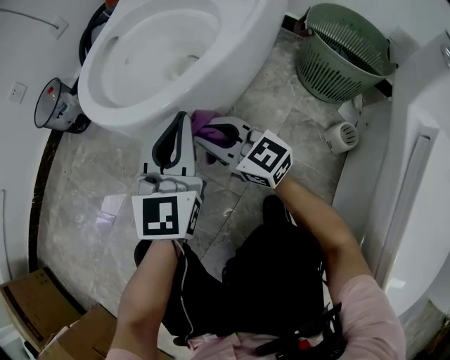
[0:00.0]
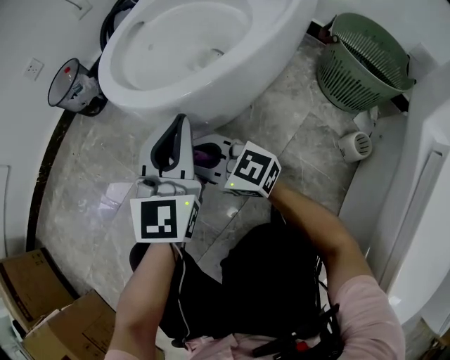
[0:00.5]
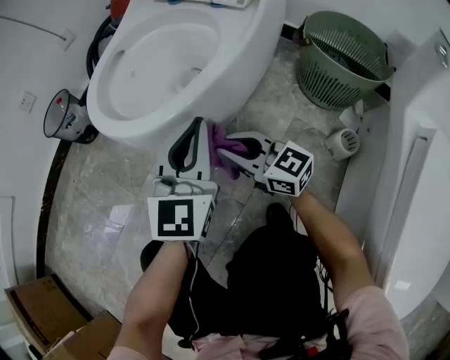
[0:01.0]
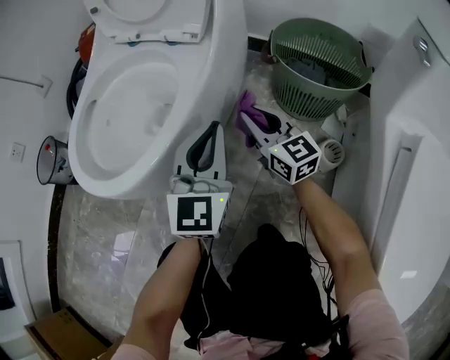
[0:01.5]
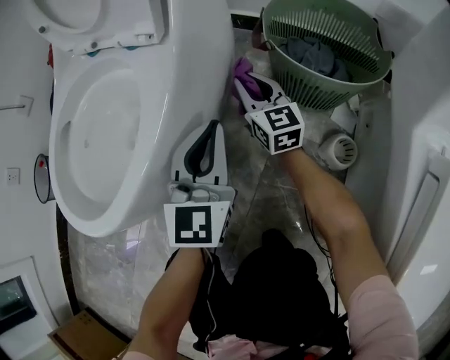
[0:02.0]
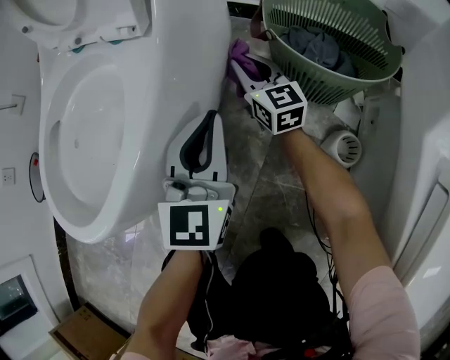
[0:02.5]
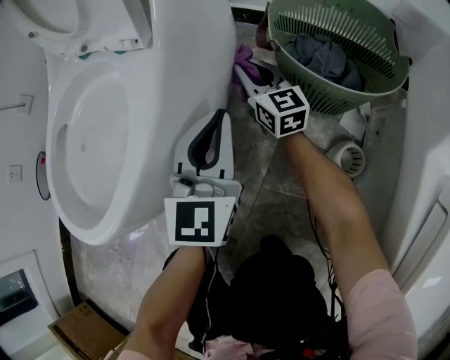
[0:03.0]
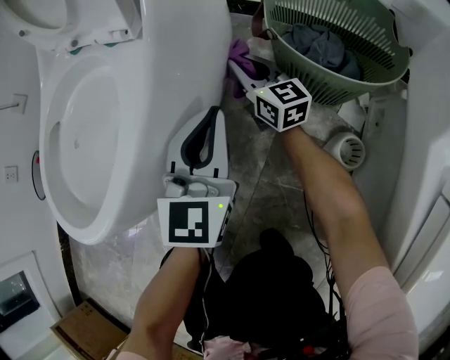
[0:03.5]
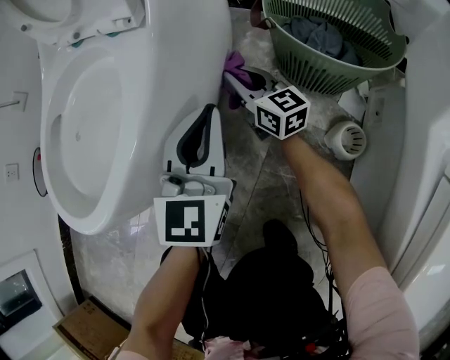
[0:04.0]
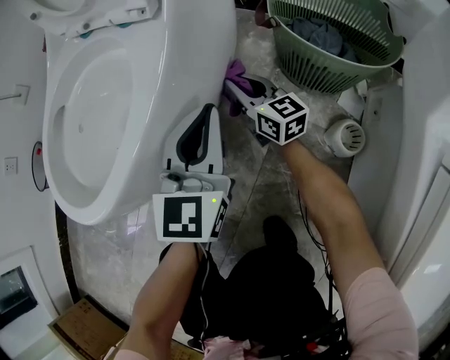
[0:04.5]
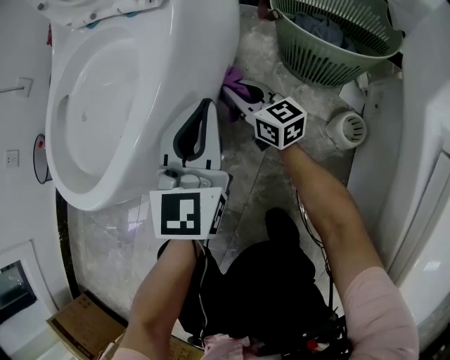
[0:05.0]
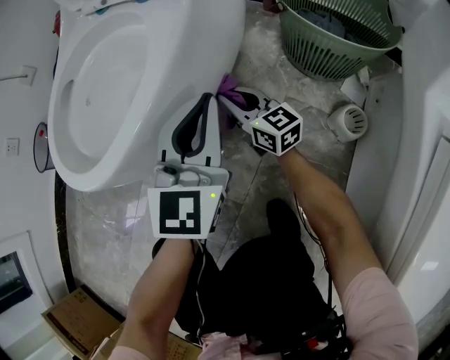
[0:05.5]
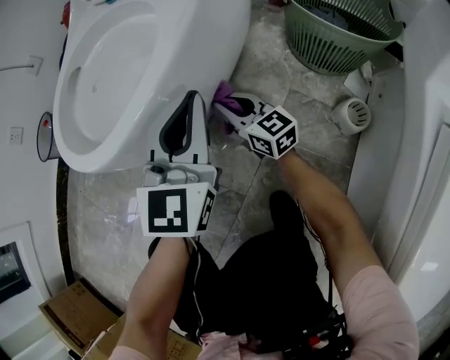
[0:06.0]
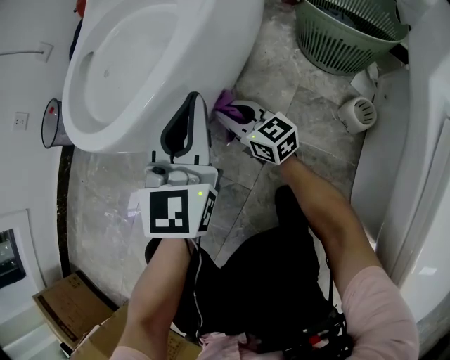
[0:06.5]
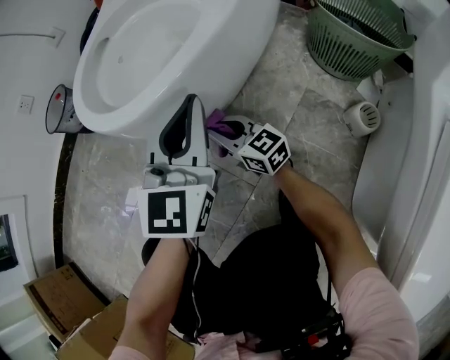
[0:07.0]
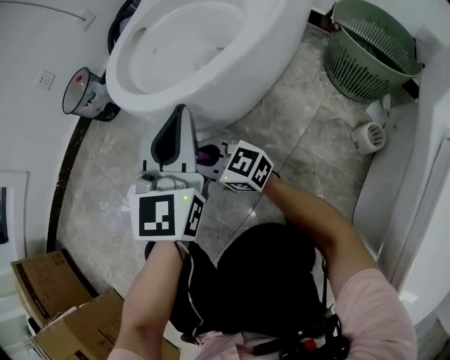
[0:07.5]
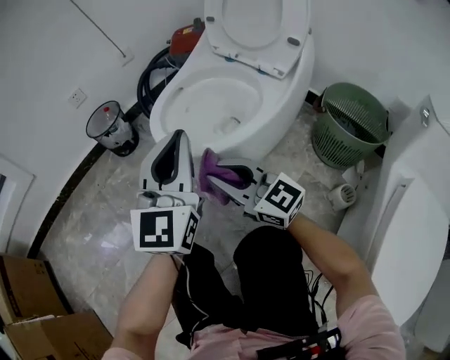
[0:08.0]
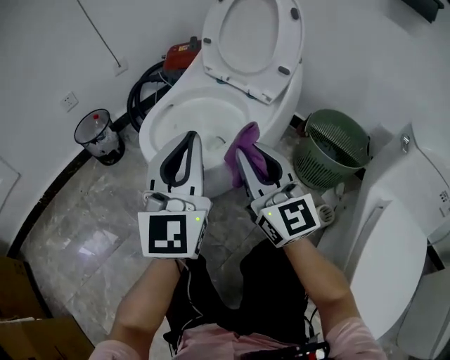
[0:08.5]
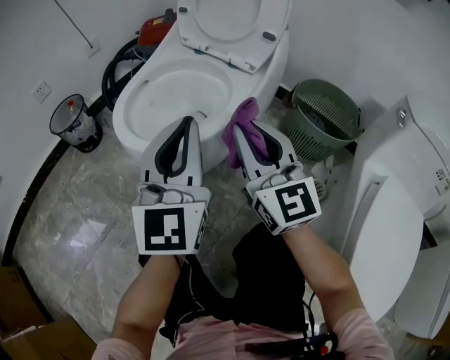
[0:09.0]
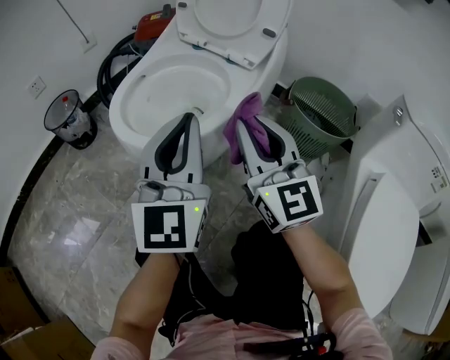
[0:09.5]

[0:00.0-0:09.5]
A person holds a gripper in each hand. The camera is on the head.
0.0 to 2.0 s: The left gripper changes place by about 20 cm; the right gripper shifts by about 35 cm, and changes its angle by about 50 degrees.
4.0 to 5.5 s: The left gripper moves backward, some 5 cm; the right gripper shifts approximately 15 cm backward and to the left.
5.5 to 7.5 s: The left gripper moves some 20 cm. The right gripper moves approximately 35 cm, and changes its angle by some 40 degrees.
7.5 to 9.5 s: The right gripper is displaced upward by roughly 30 cm, and changes its angle by approximately 60 degrees. Meanwhile the left gripper goes roughly 15 cm upward.

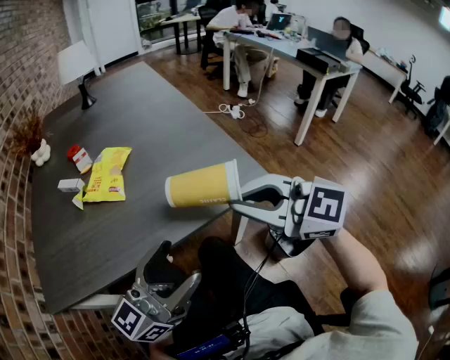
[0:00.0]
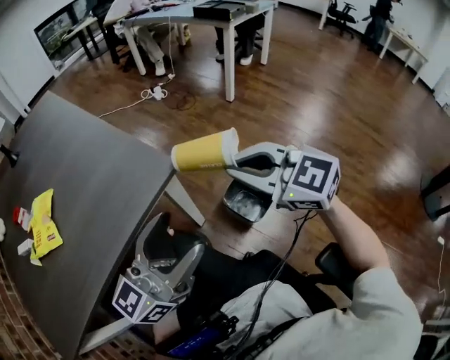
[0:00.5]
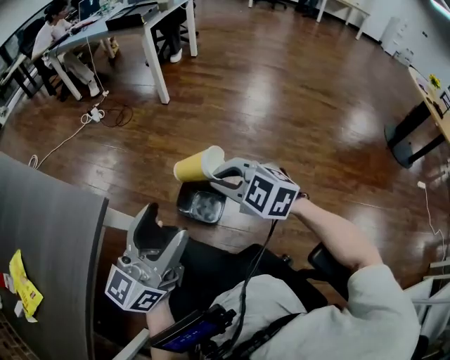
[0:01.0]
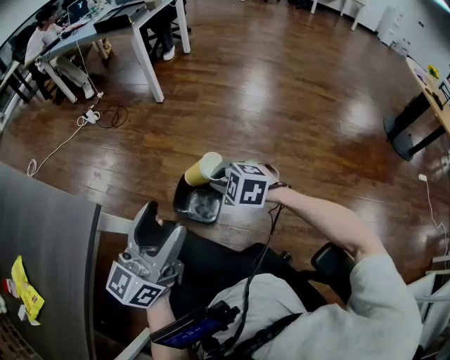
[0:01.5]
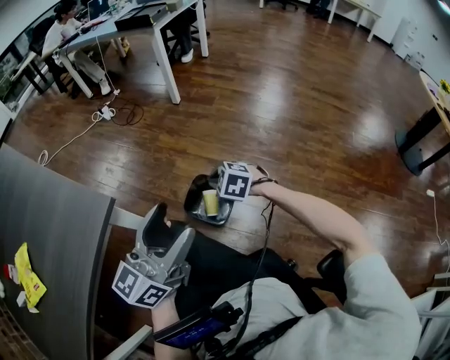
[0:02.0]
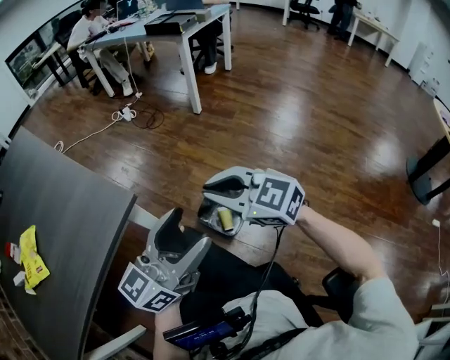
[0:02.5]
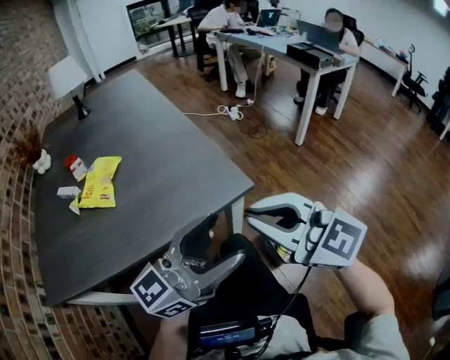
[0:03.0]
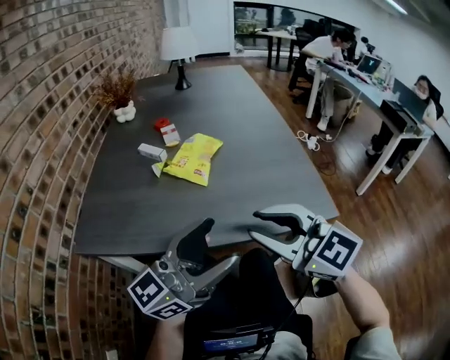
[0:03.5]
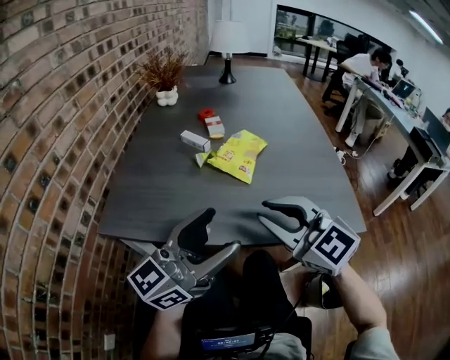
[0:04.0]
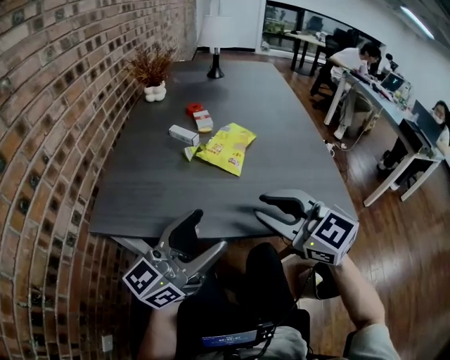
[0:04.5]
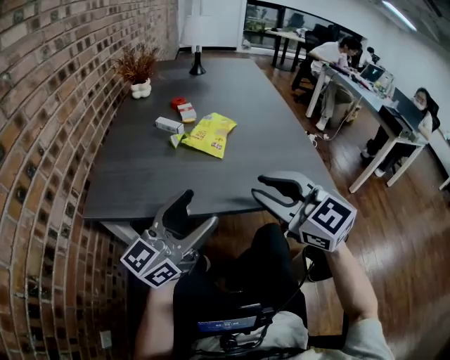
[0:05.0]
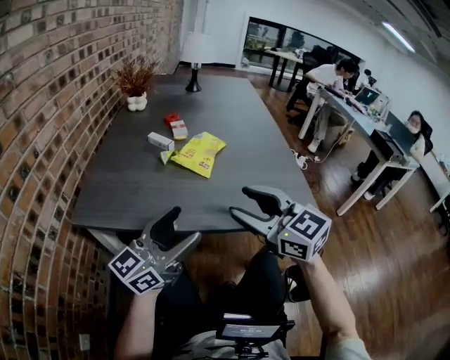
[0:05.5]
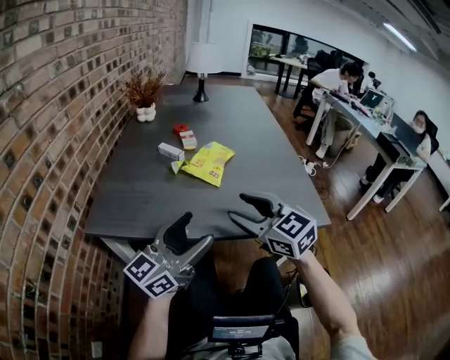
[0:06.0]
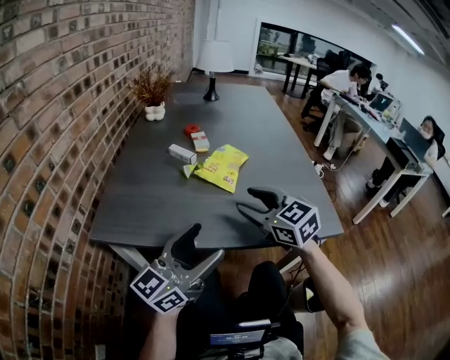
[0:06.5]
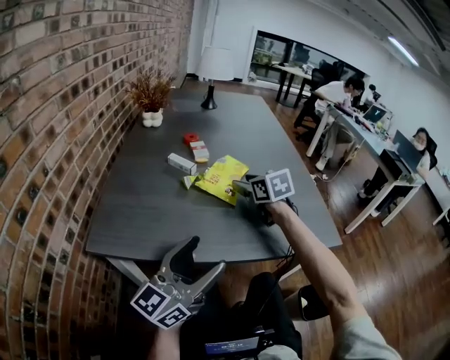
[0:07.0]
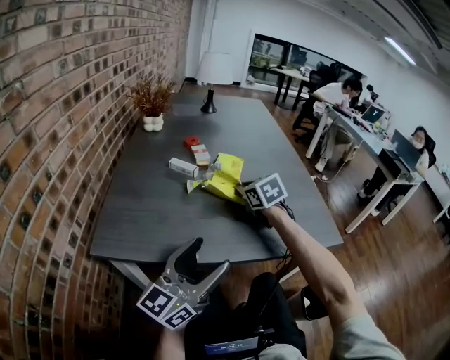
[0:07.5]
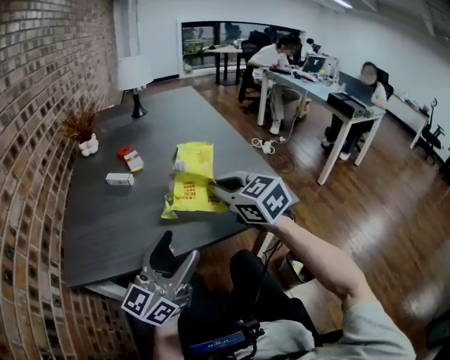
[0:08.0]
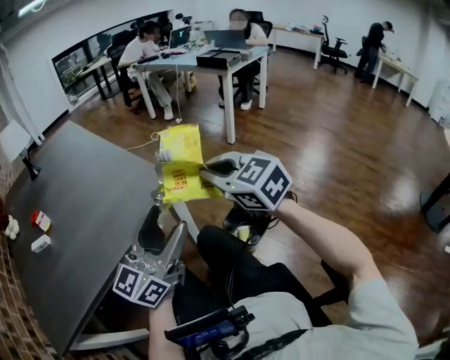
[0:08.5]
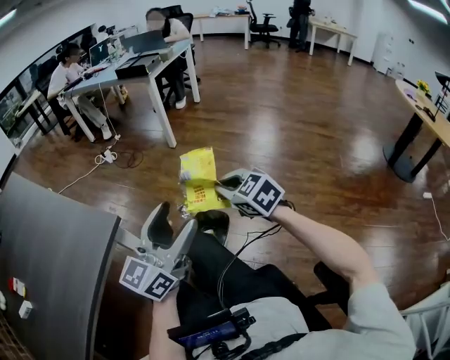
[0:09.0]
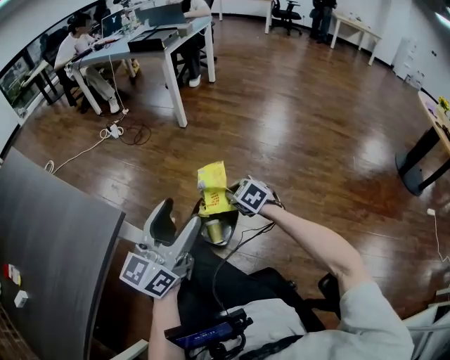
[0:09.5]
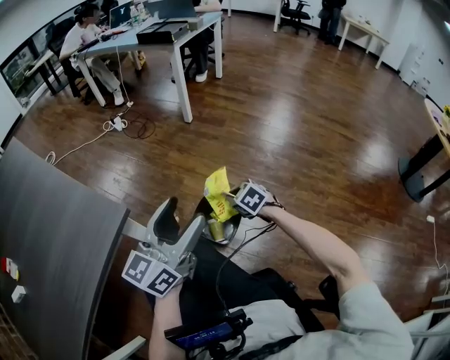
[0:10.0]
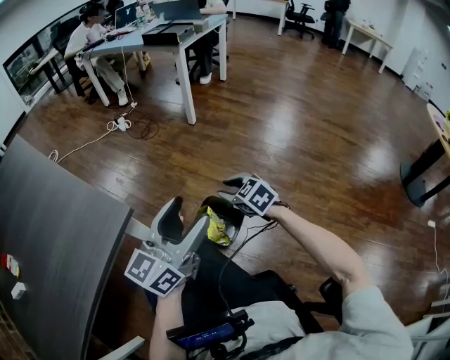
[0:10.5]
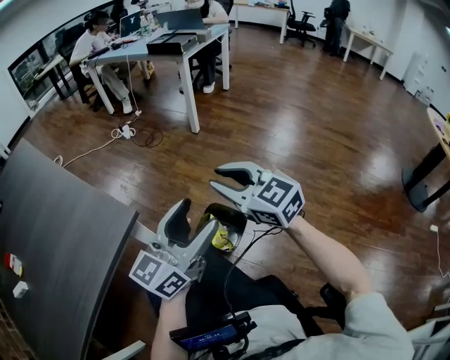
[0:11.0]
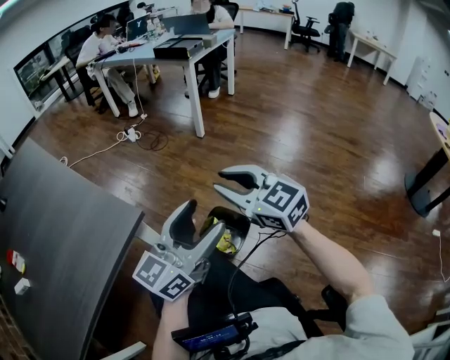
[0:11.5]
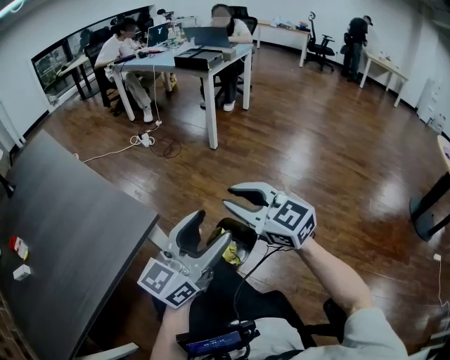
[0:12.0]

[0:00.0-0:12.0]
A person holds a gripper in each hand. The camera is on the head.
0.0 to 2.0 s: The left gripper shifts by approximately 30 cm, and rotates about 30 degrees. Meanwhile the right gripper ends up roughly 50 cm from where it was, and tilts its fingers about 50 degrees downward.
2.0 to 4.0 s: The pair of grippers is taken about 50 cm. The right gripper angles its fingers upward, by roughly 50 degrees. Meanwhile the left gripper turns by about 60 degrees.
4.0 to 6.0 s: The right gripper opens up.
6.0 to 8.0 s: The right gripper goes roughly 10 cm forward and to the right, and closes its fingers.
8.0 to 10.0 s: The pair of grippers is taken roughly 50 cm. The right gripper points its fingers roughly 30 degrees further downward, while the left gripper changes its angle by about 50 degrees.
10.0 to 12.0 s: The right gripper is displaced upward by roughly 30 cm, and tilts its fingers about 40 degrees upward. Meanwhile the left gripper changes place by about 5 cm.

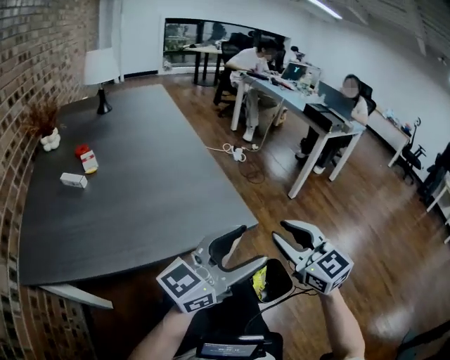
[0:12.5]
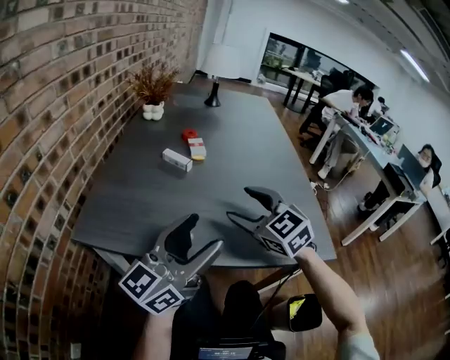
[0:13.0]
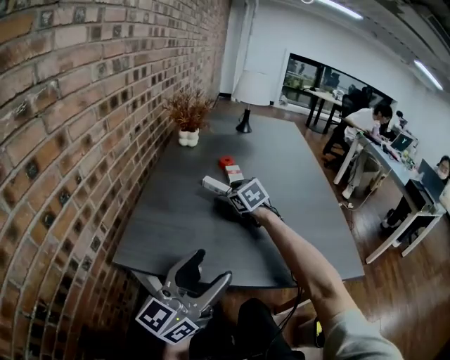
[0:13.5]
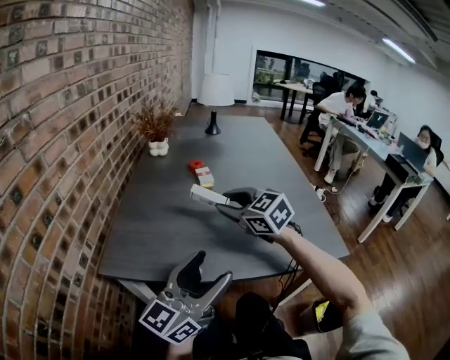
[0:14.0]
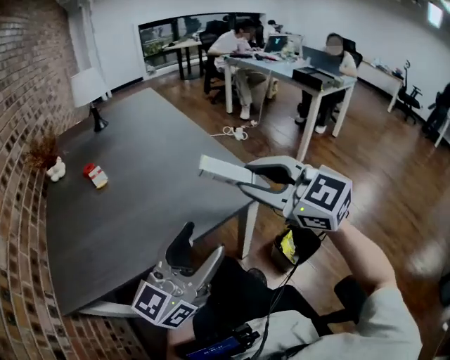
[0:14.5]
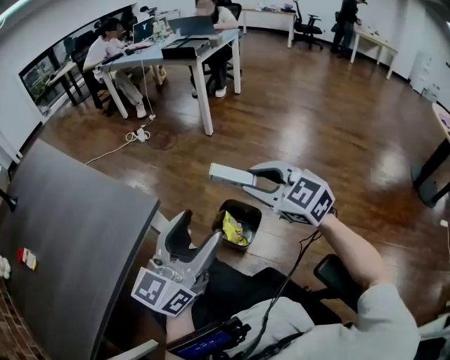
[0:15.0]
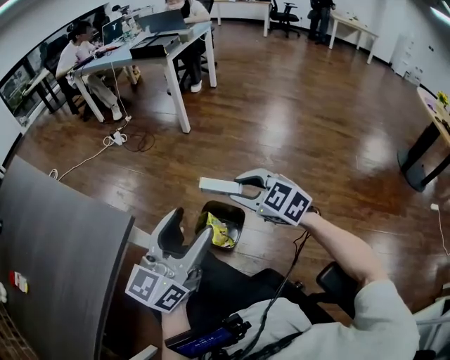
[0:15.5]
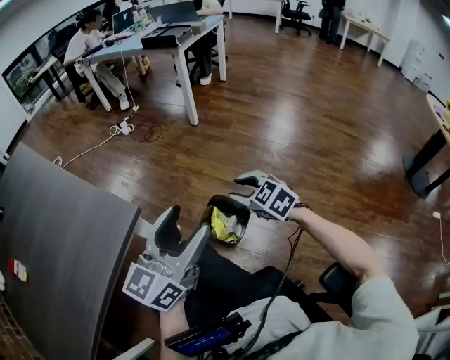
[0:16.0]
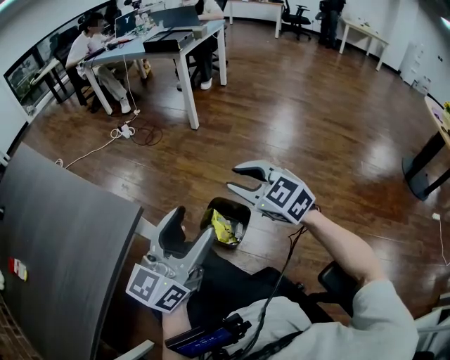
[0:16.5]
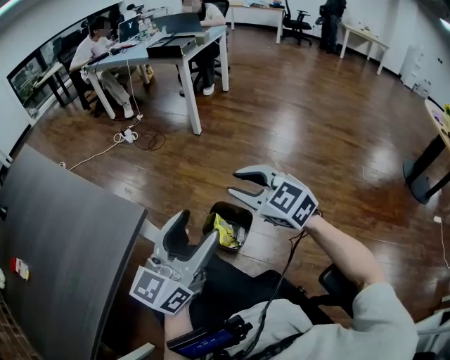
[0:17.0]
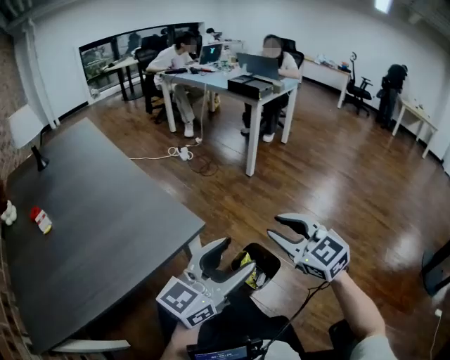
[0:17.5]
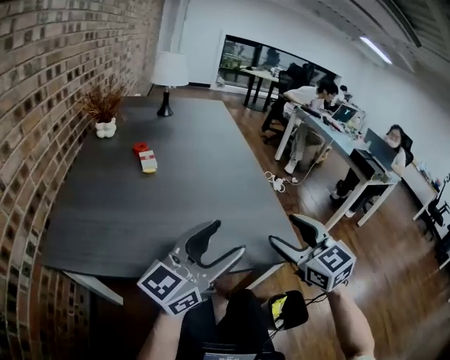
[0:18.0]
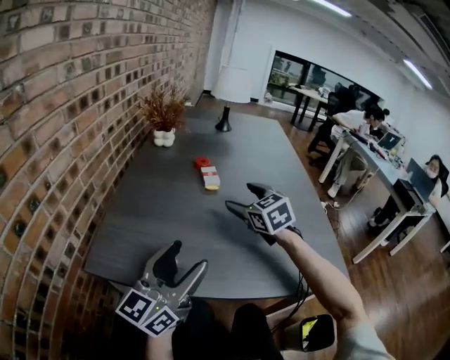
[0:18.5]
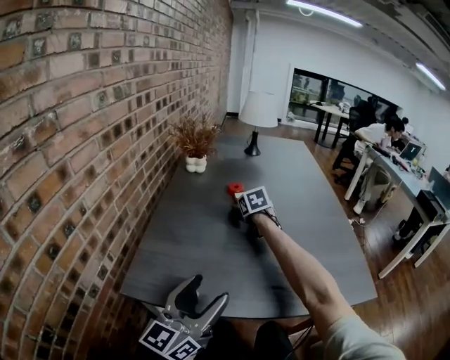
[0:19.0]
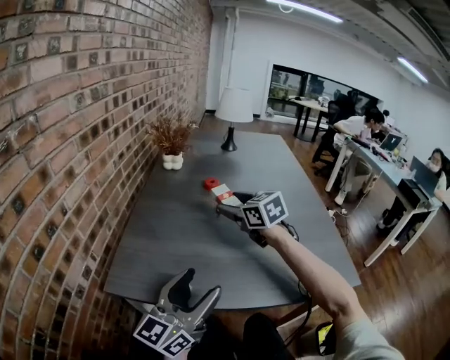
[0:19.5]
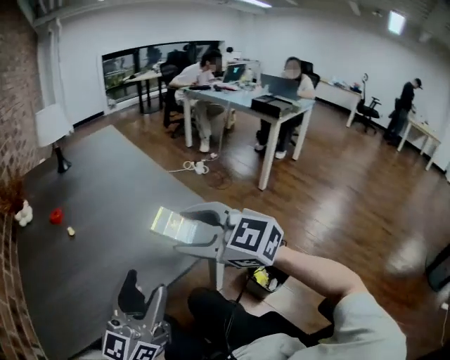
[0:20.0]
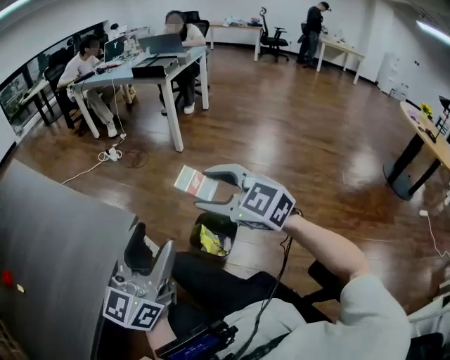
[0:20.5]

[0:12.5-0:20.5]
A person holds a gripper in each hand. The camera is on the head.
12.5 to 14.5 s: The right gripper opens and closes again.
14.5 to 16.5 s: The right gripper moves about 35 cm, and swivels approximately 40 degrees; the left gripper moves about 30 cm, and changes its angle by approximately 30 degrees.
16.5 to 18.5 s: Both grippers are carried about 60 cm. The right gripper rotates about 50 degrees, and opens up. Meanwhile the left gripper rotates some 70 degrees.
18.5 to 20.5 s: The pair of grippers is taken approximately 60 cm. The right gripper swivels roughly 40 degrees; the left gripper turns by approximately 60 degrees.
